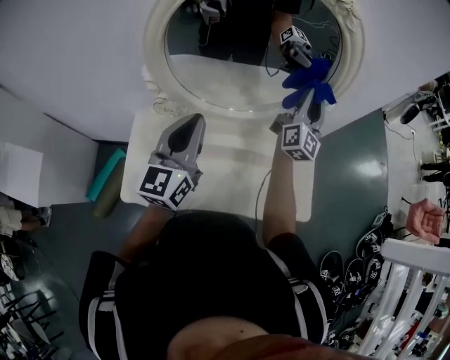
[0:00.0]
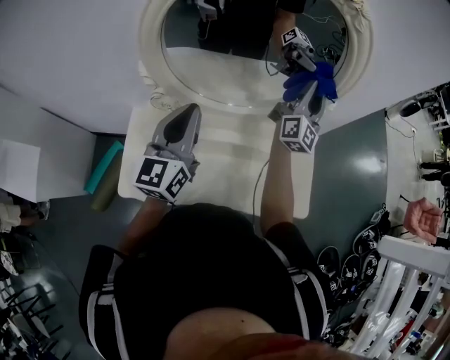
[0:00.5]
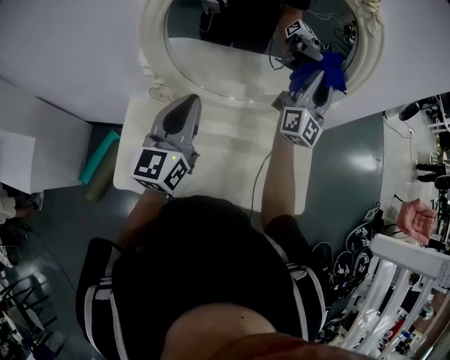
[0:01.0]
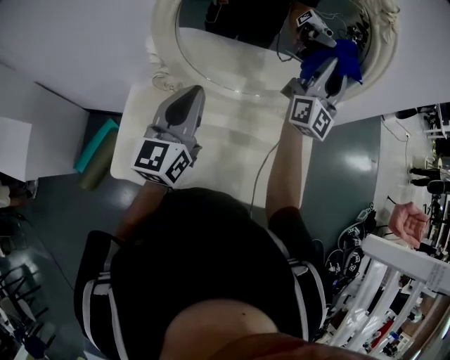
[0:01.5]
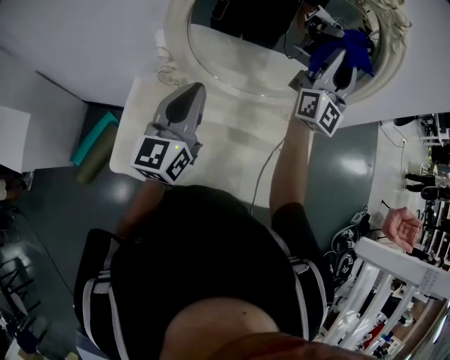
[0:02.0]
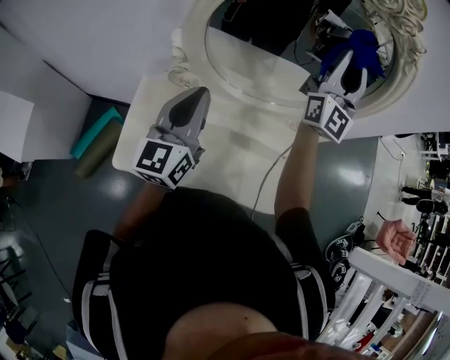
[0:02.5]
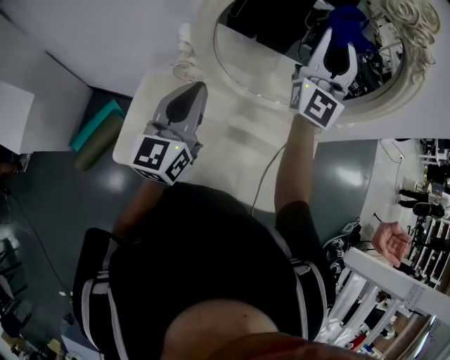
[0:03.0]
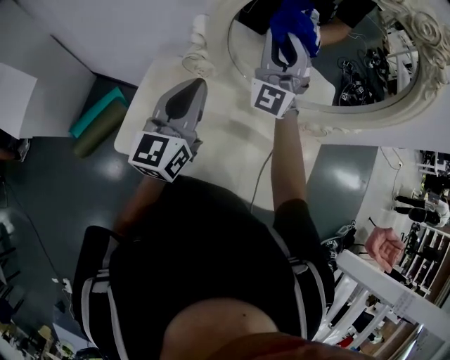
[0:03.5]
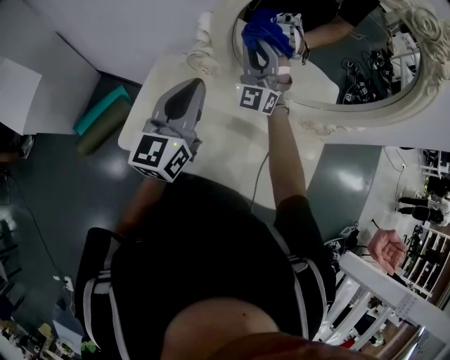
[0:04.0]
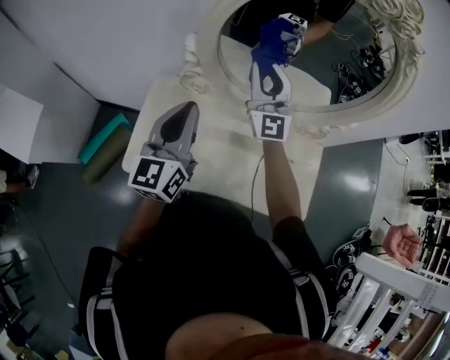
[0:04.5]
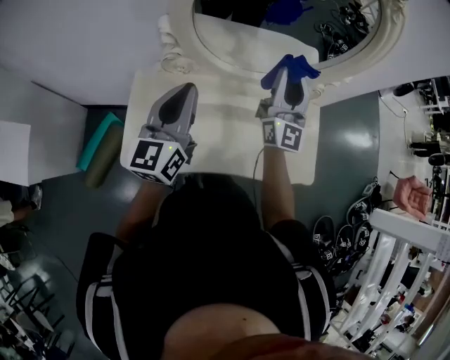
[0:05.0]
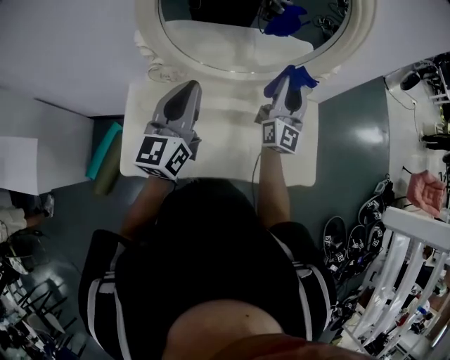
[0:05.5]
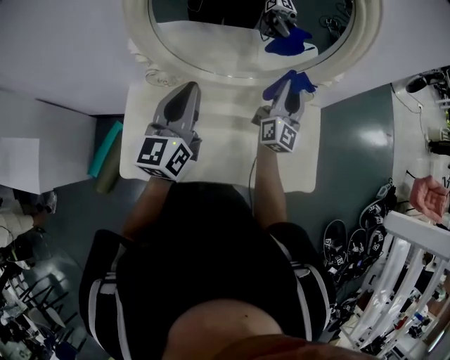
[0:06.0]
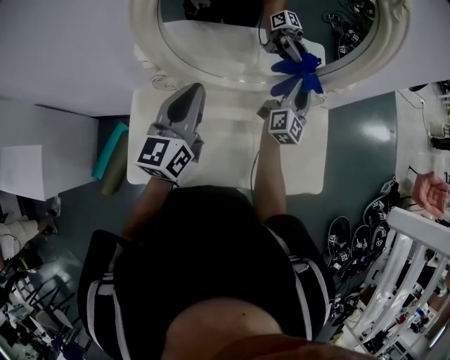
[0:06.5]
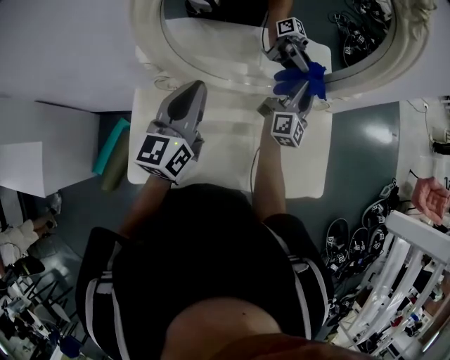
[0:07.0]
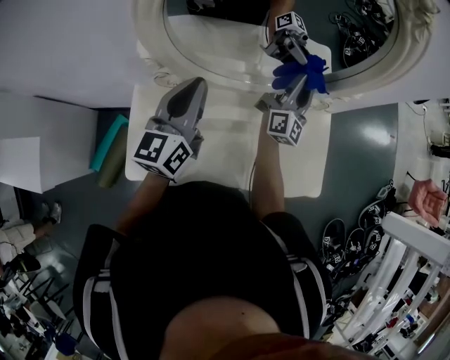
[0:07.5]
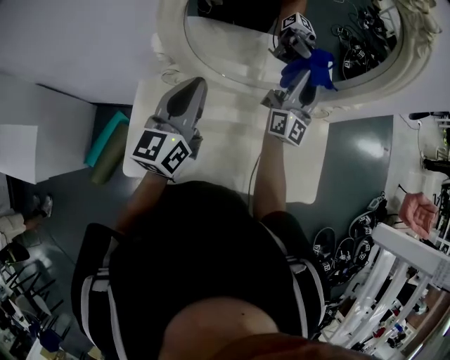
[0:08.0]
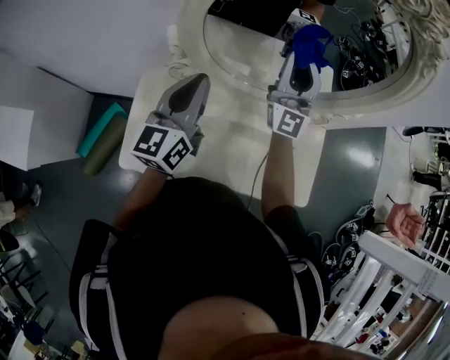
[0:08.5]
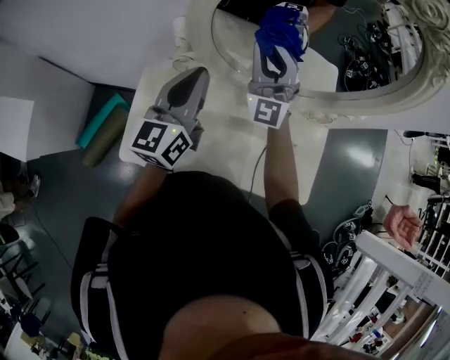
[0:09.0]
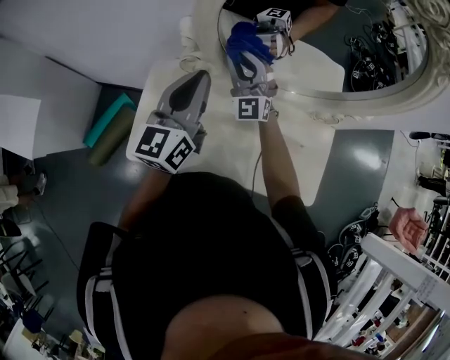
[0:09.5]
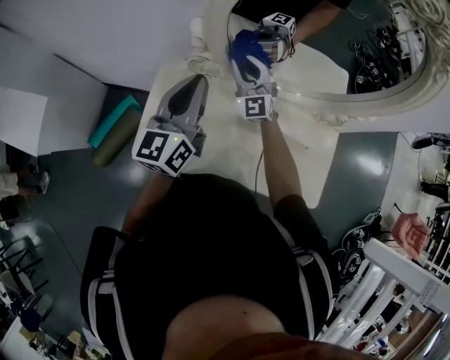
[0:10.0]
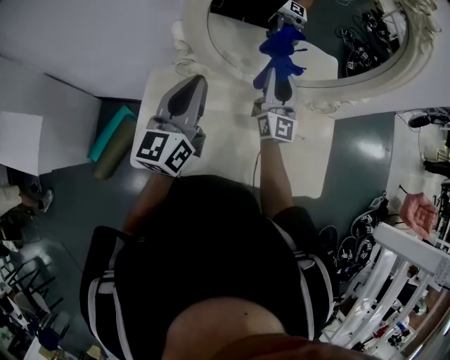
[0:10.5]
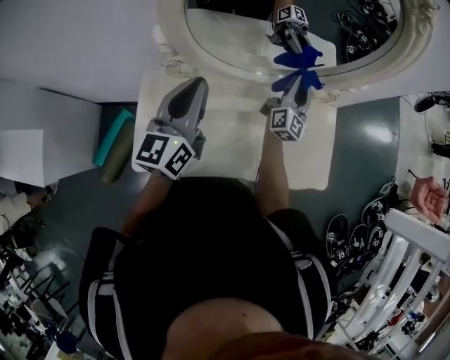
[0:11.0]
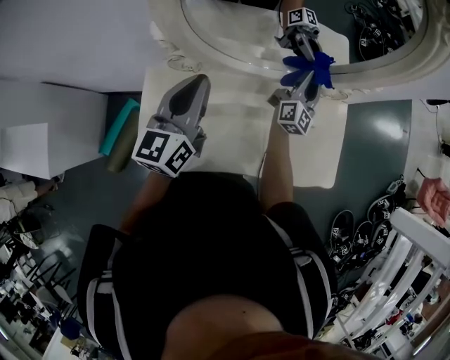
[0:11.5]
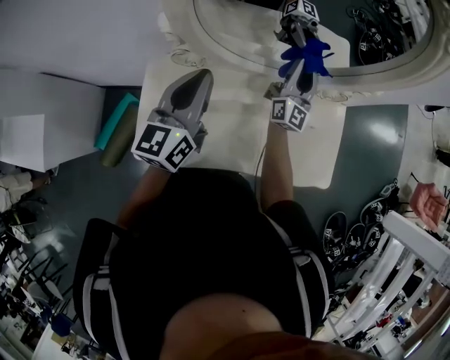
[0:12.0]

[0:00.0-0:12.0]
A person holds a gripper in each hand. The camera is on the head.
0:00.0 to 0:02.0: The left gripper travels to the left by about 5 cm. Meanwhile the right gripper moves upward and to the left, roughly 15 cm, and changes its angle by some 20 degrees.
0:02.0 to 0:04.0: The left gripper goes approximately 10 cm to the left; the right gripper travels to the left and downward by roughly 35 cm, and turns by roughly 60 degrees.
0:04.0 to 0:06.0: The left gripper shifts by approximately 15 cm. The right gripper ends up about 35 cm from where it was, and rotates approximately 80 degrees.
0:06.0 to 0:08.0: The left gripper goes about 5 cm to the left. Meanwhile the right gripper goes some 10 cm to the left and upward.
0:08.0 to 0:10.0: The right gripper ends up roughly 30 cm from where it was, and rotates some 60 degrees. The left gripper changes place by some 10 cm.
0:10.0 to 0:12.0: The right gripper swings up and down, some 10 cm each way, with 2 reversals, and rotates about 60 degrees. The left gripper moves roughly 10 cm.

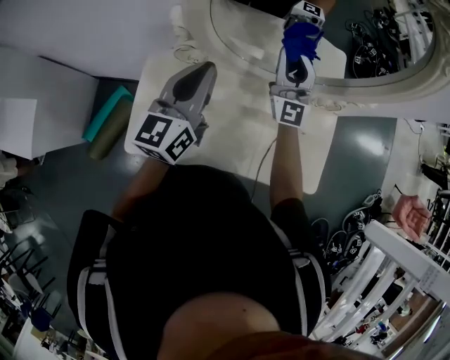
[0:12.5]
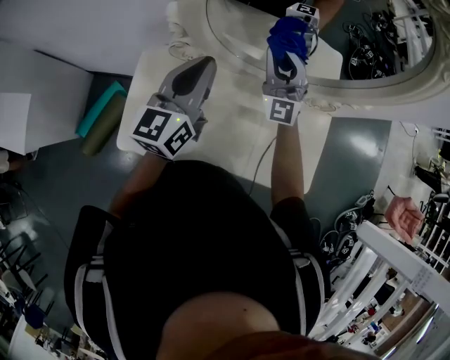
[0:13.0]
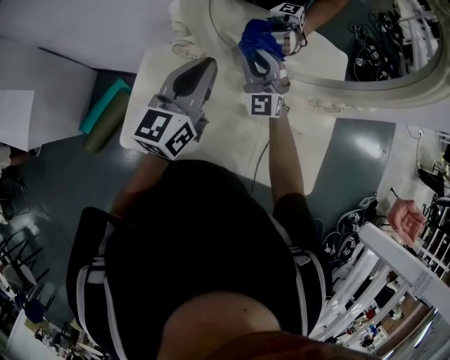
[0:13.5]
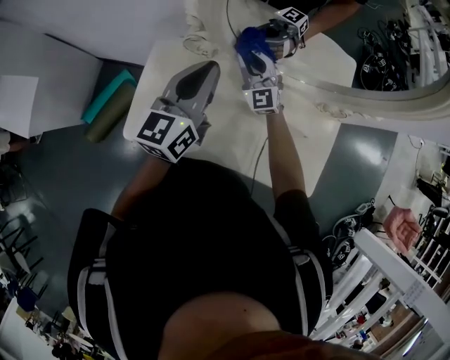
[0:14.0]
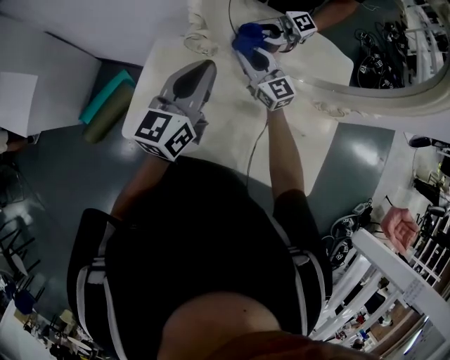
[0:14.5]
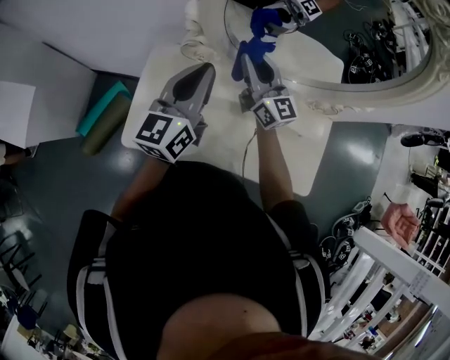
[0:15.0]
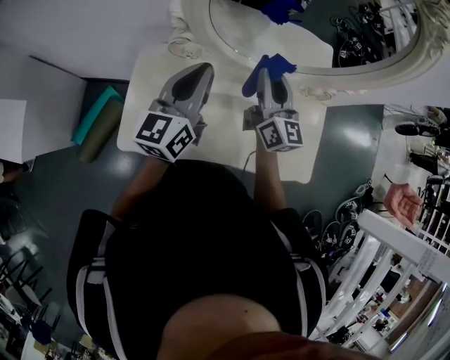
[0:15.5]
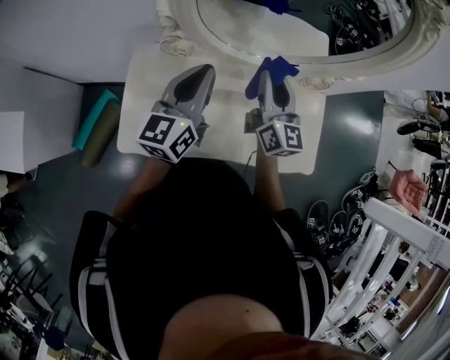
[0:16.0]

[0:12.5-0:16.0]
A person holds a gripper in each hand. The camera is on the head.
0:12.5 to 0:14.5: The right gripper moves downward and to the left, approximately 20 cm, and turns by some 50 degrees.
0:14.5 to 0:16.0: The right gripper changes place by approximately 20 cm, and changes its angle by approximately 40 degrees.

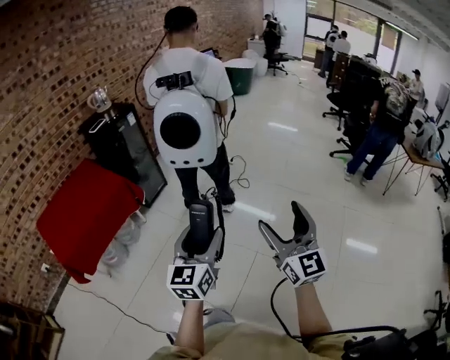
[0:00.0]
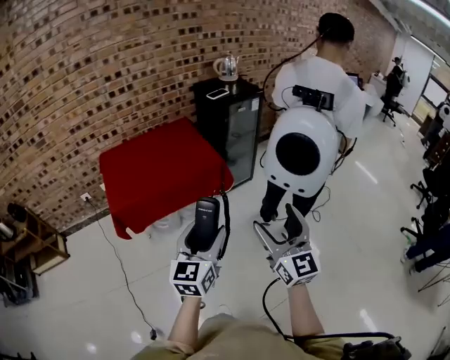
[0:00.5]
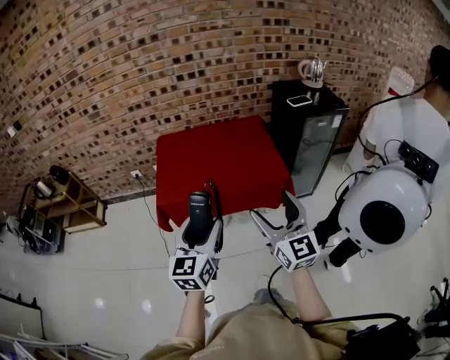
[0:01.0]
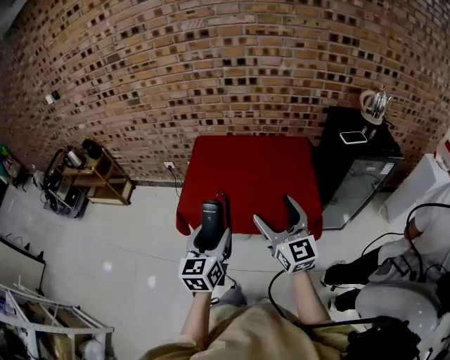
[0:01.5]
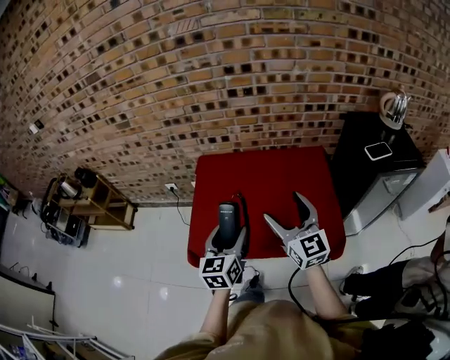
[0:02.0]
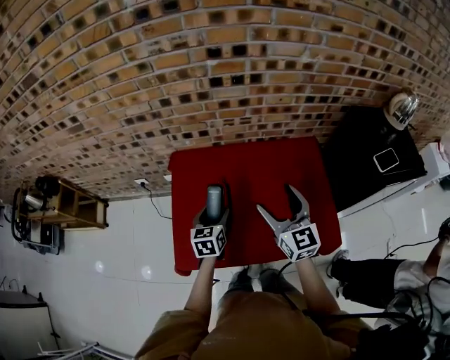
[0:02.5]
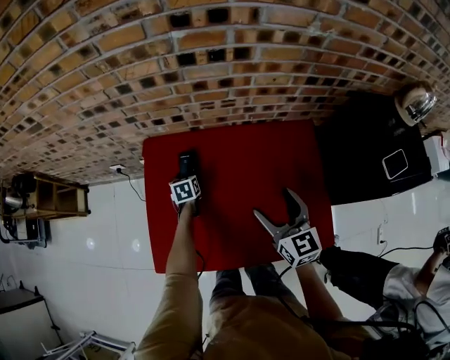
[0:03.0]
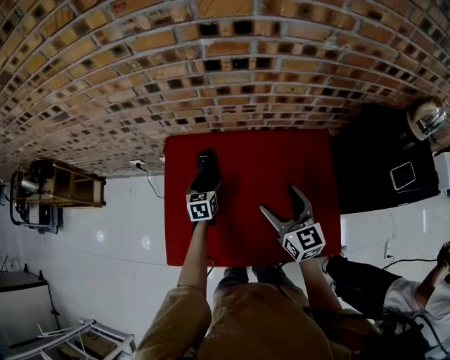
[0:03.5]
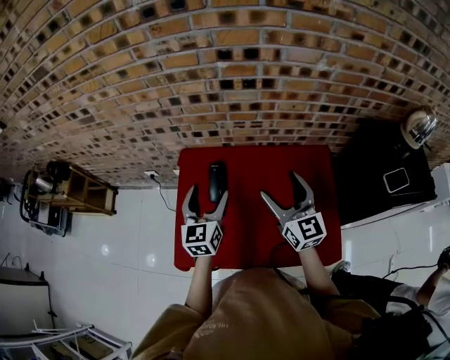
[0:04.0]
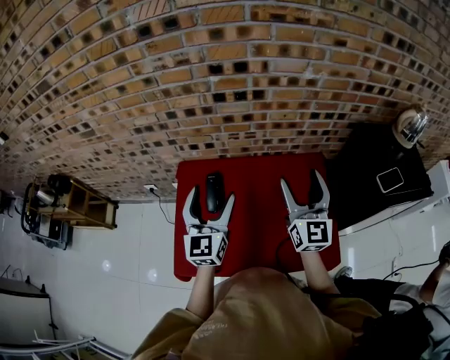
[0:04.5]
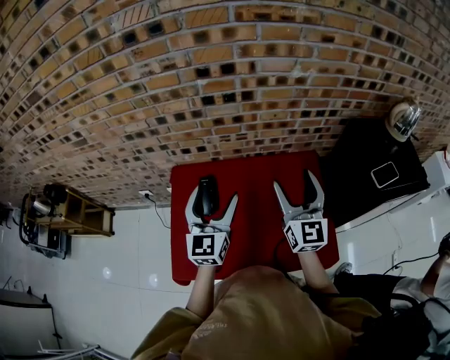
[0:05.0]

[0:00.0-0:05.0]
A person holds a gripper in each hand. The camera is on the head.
0:00.0 to 0:02.5: The two grippers travel together, approximately 1 m. The right gripper tilts its fingers some 30 degrees downward. The left gripper points its fingers approximately 30 degrees further downward.
0:02.5 to 0:05.0: The left gripper goes some 25 cm upward, and tilts its fingers roughly 30 degrees upward. Meanwhile the right gripper heads to the right and upward, covering roughly 15 cm.

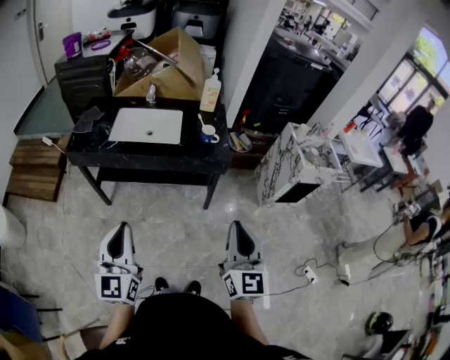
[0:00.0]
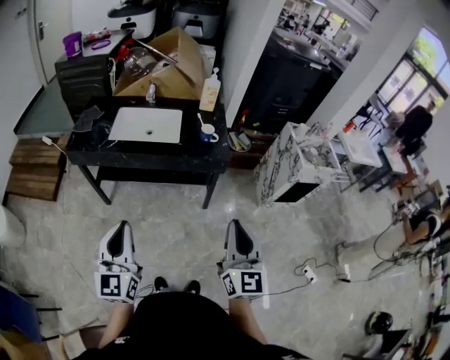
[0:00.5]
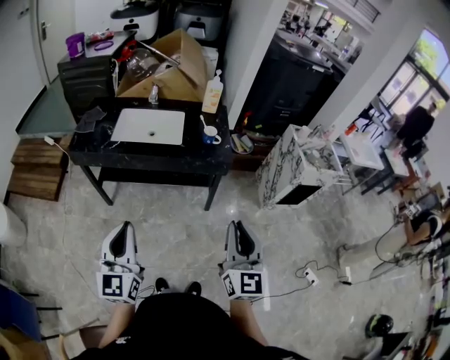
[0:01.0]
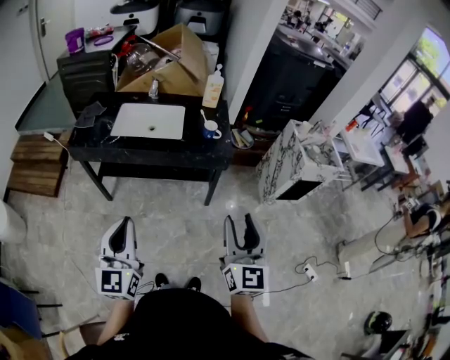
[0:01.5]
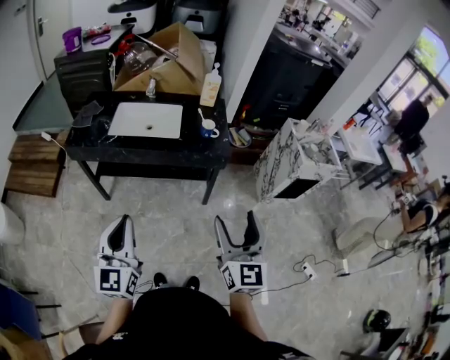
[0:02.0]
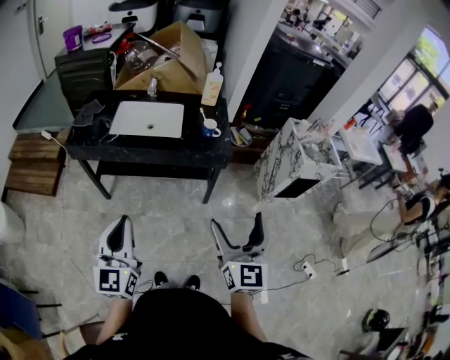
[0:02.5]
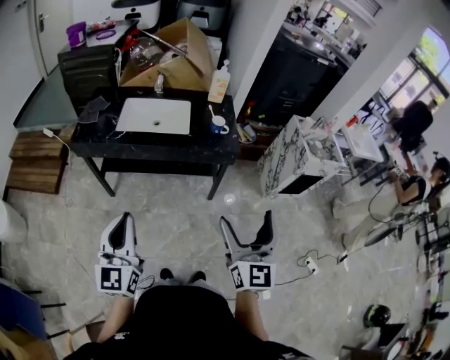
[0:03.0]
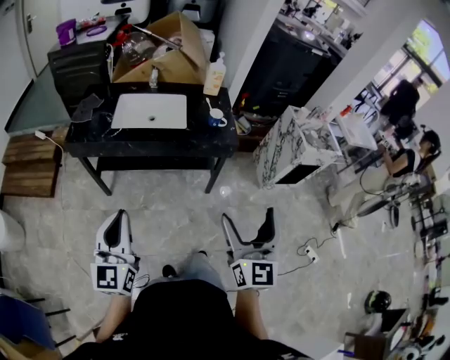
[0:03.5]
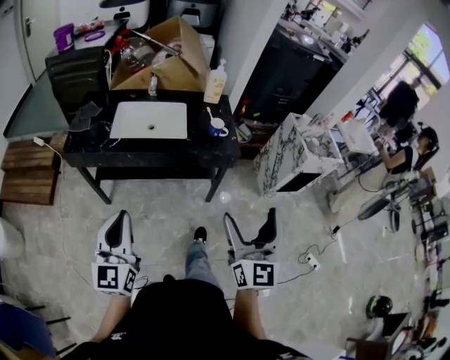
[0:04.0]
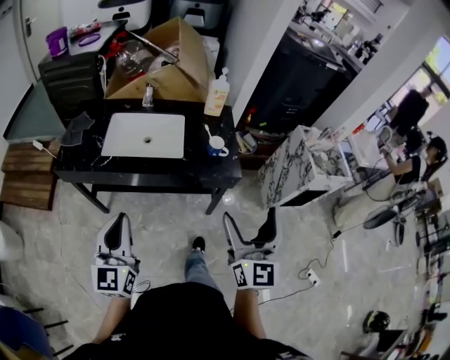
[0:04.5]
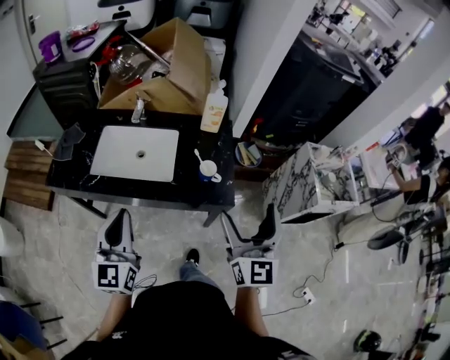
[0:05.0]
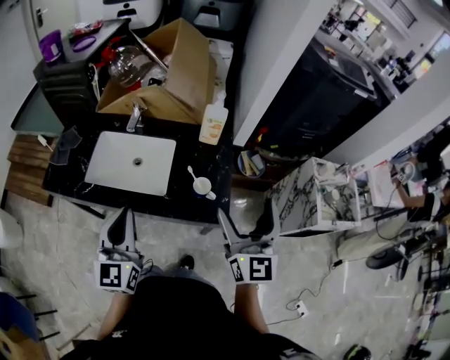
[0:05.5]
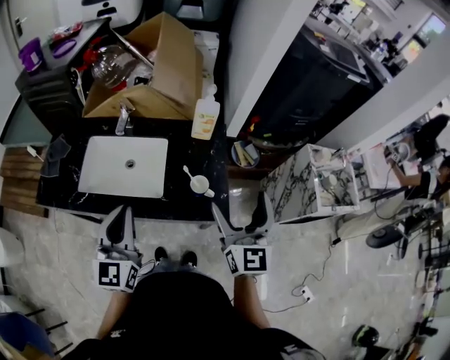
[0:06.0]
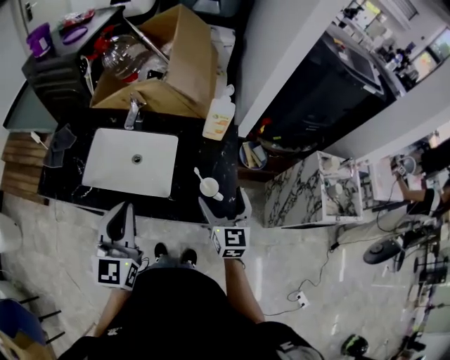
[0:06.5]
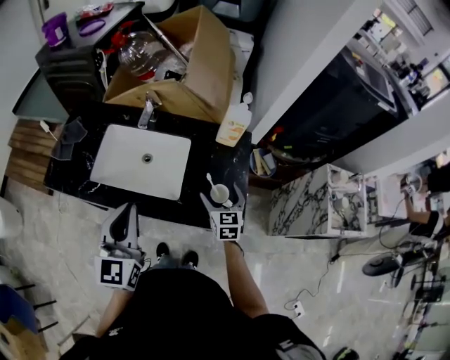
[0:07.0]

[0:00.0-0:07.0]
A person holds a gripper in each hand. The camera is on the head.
0:00.0 to 0:02.0: The right gripper opens up.
0:02.0 to 0:03.5: The left gripper shifts some 10 cm to the left. The right gripper moves roughly 5 cm.
0:03.5 to 0:05.0: The two grippers go approximately 35 cm forward.
0:05.0 to 0:07.0: The left gripper travels forward by roughly 15 cm, while the right gripper is displaced downward and forward by about 35 cm, and tips its fingers downward by some 30 degrees.
